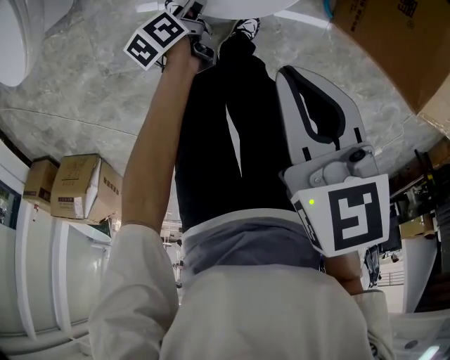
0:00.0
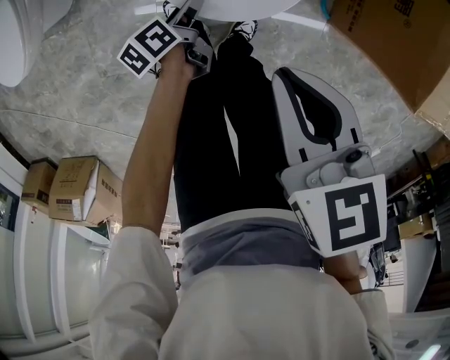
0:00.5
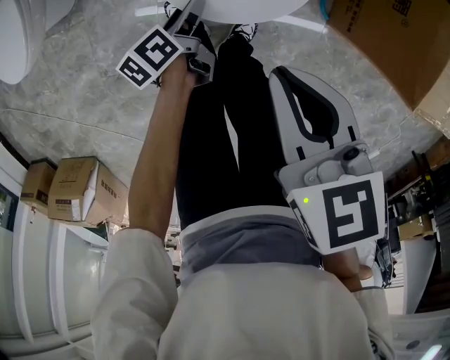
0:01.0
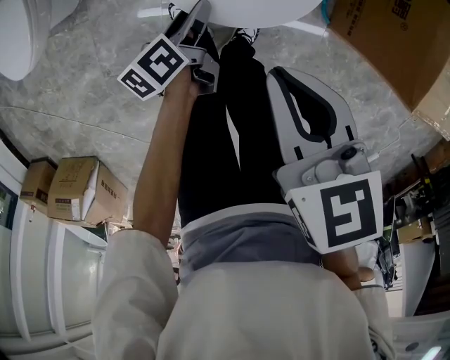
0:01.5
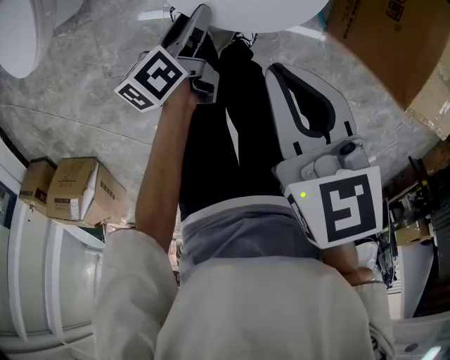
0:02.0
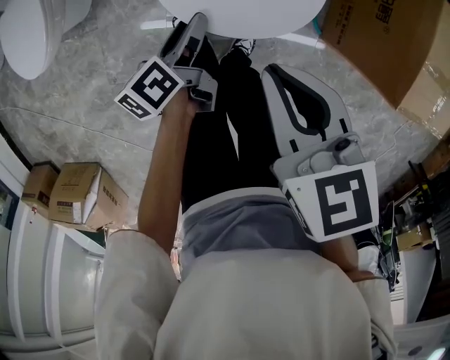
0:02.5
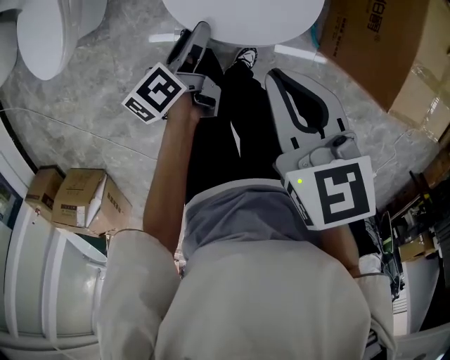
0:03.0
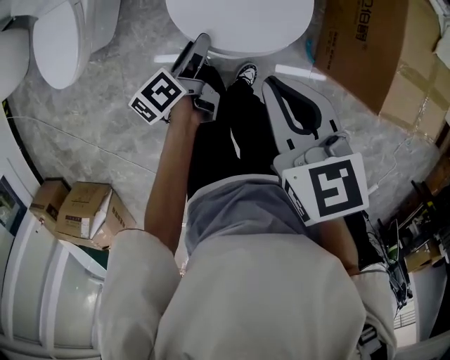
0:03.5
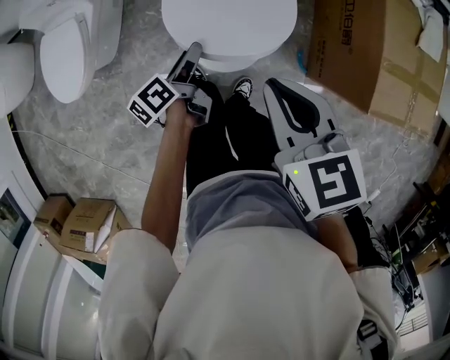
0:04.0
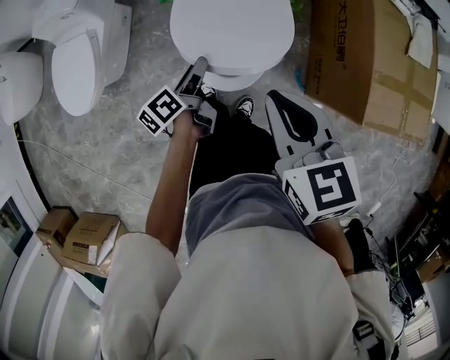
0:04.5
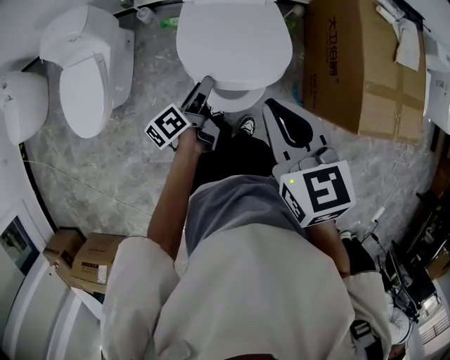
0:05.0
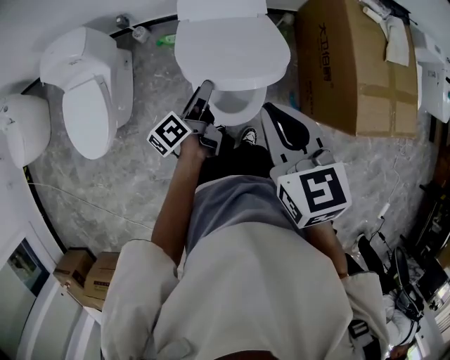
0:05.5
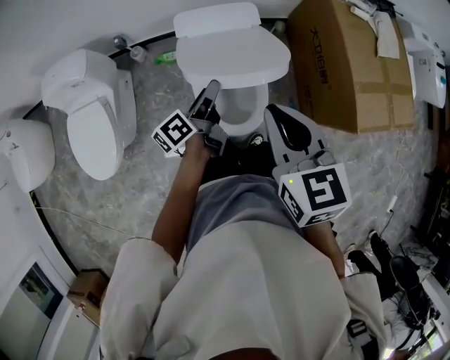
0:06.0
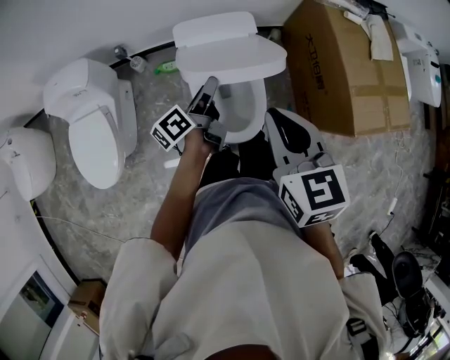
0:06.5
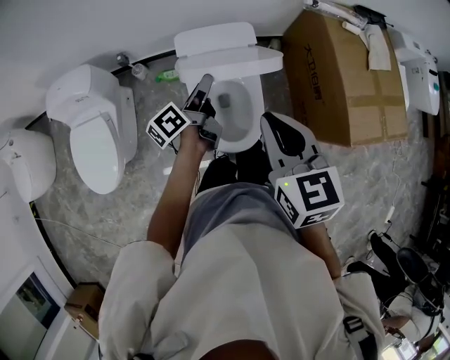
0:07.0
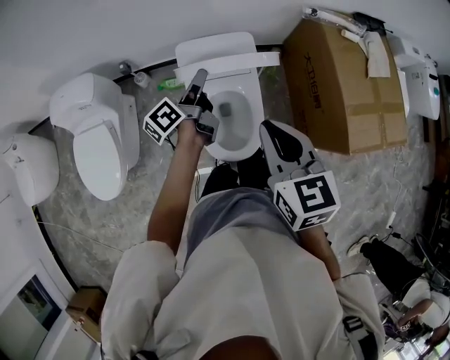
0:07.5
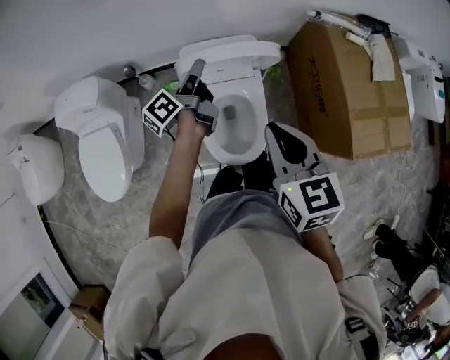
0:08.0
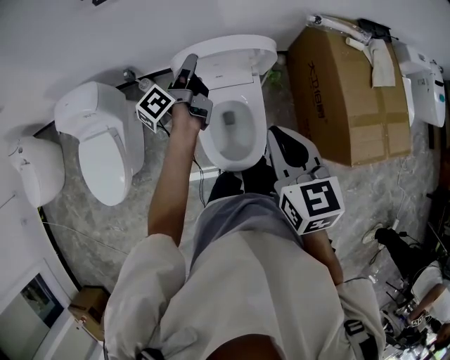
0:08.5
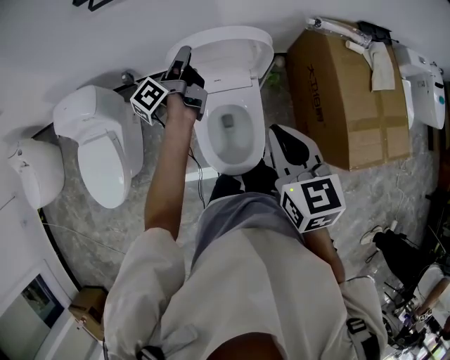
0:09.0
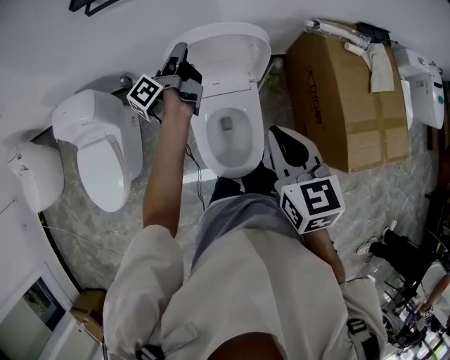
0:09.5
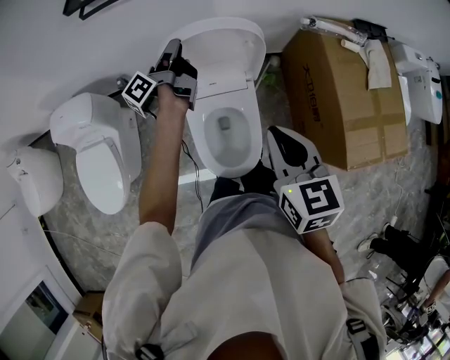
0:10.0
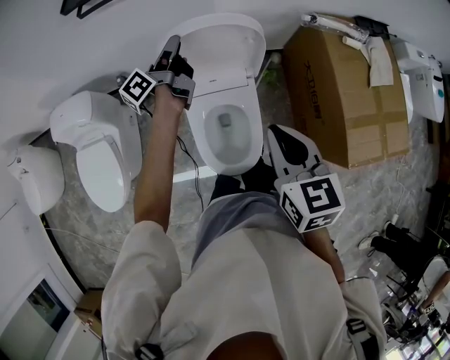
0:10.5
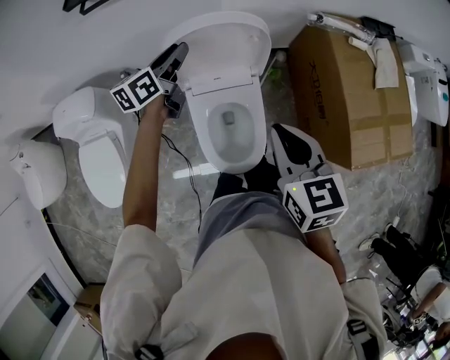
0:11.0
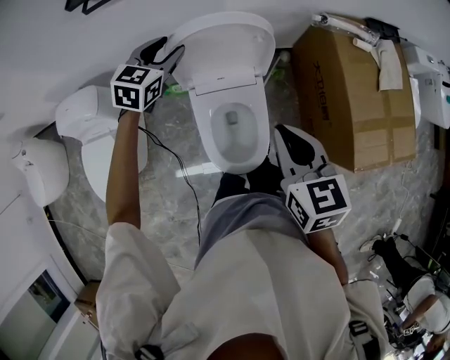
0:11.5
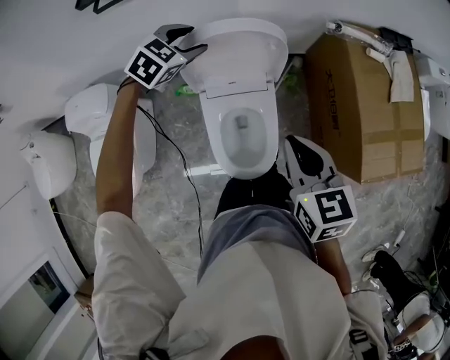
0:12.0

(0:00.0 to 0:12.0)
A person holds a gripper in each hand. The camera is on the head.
0:00.0 - 0:02.0: The left gripper is displaced upward by some 15 cm.
0:02.0 - 0:04.0: Both grippers travel together upward, about 15 cm.
0:04.0 - 0:06.0: The right gripper shifts roughly 15 cm upward, forward and to the left, and rotates some 20 degrees; the left gripper travels upward and forward by about 15 cm, and swivels about 20 degrees.
0:06.0 - 0:08.0: The left gripper travels forward and upward by approximately 15 cm.
0:08.0 - 0:10.0: The left gripper moves forward, some 15 cm; the right gripper goes about 10 cm forward.
0:10.0 - 0:12.0: The left gripper twists roughly 100 degrees clockwise, seen from behind, and opens.

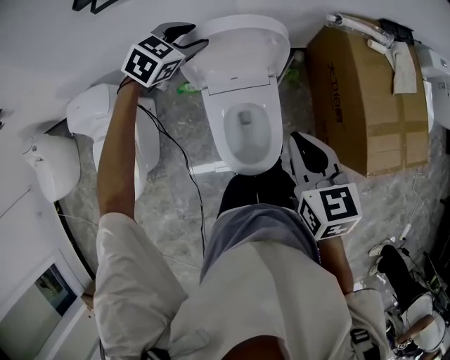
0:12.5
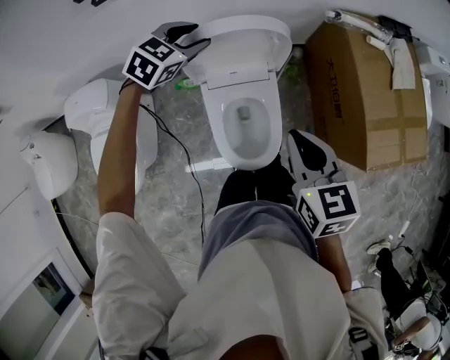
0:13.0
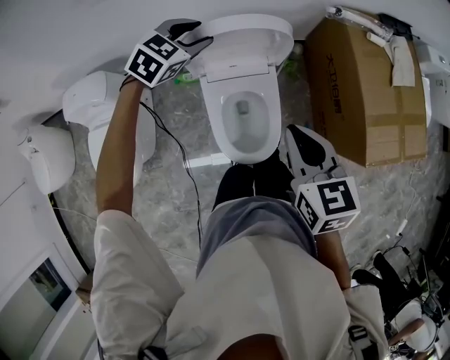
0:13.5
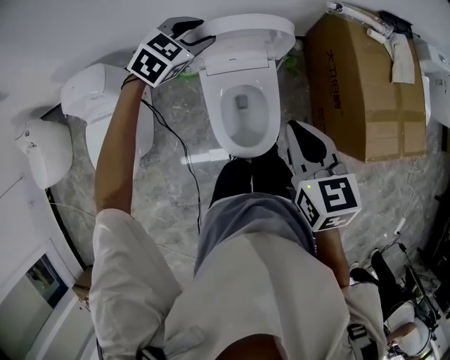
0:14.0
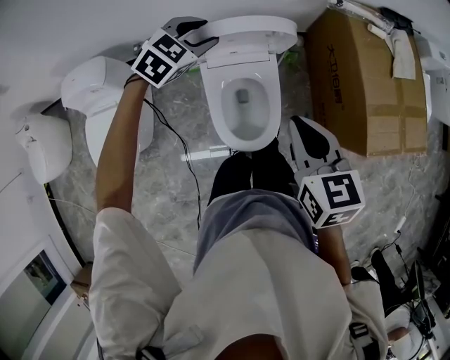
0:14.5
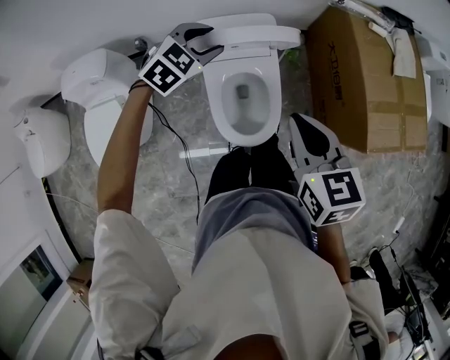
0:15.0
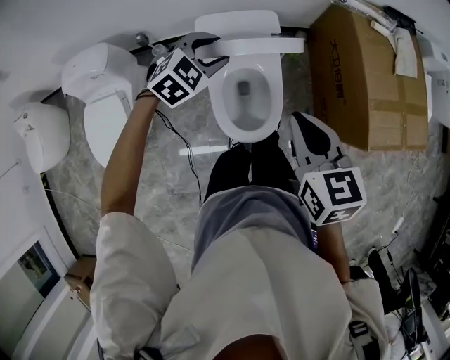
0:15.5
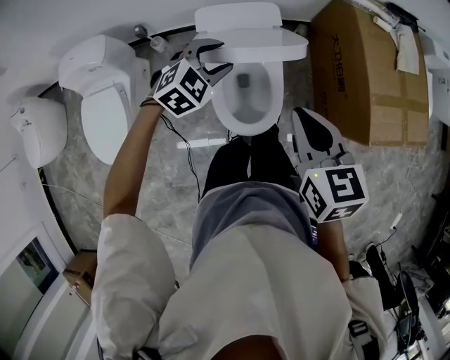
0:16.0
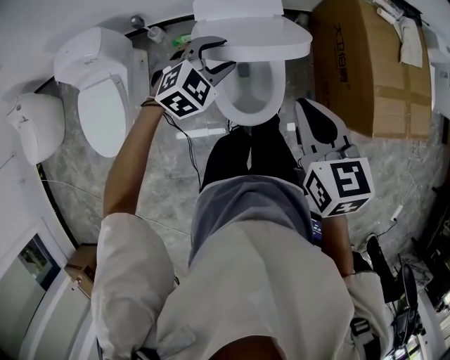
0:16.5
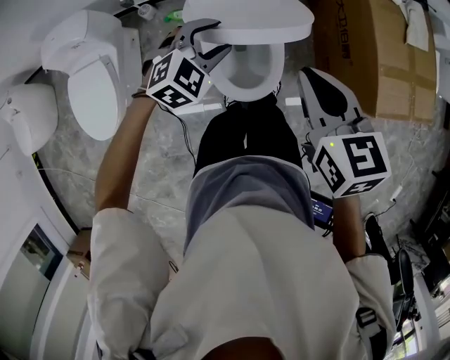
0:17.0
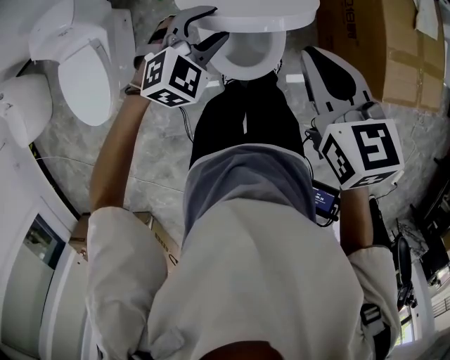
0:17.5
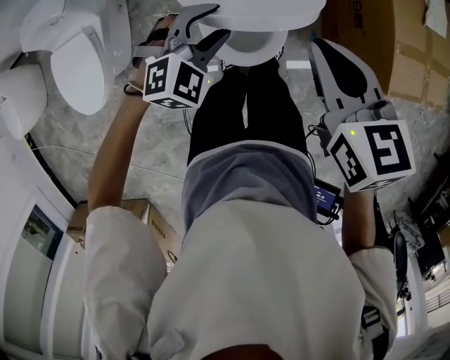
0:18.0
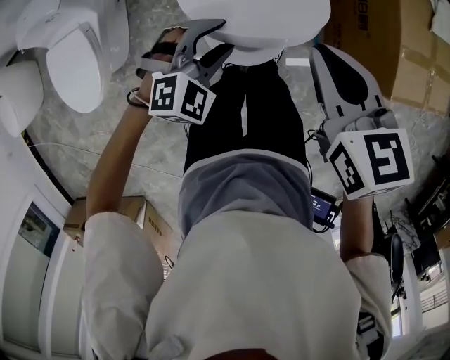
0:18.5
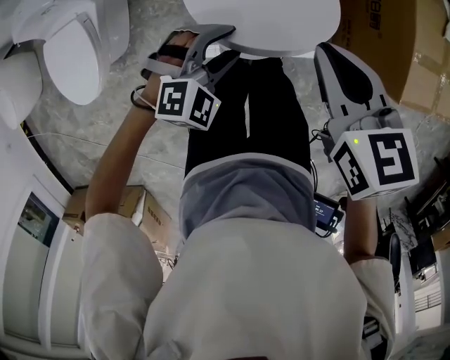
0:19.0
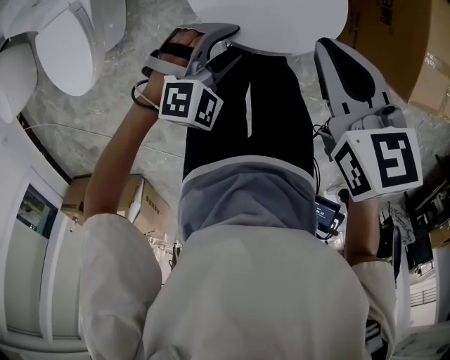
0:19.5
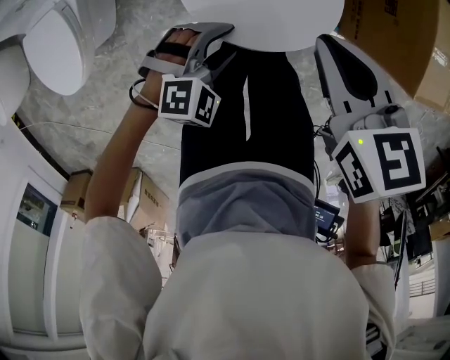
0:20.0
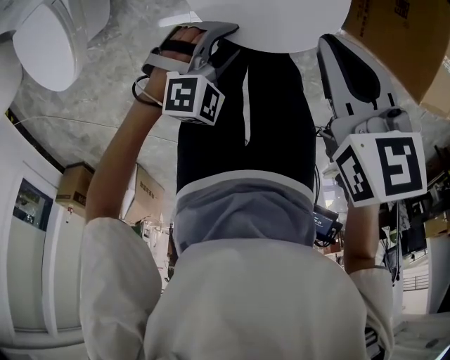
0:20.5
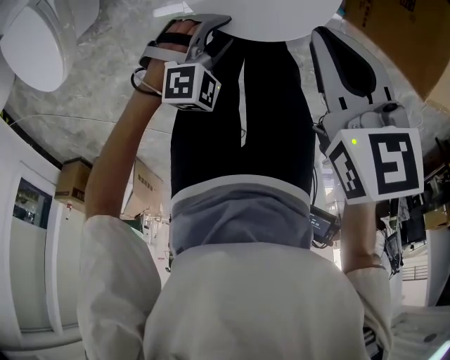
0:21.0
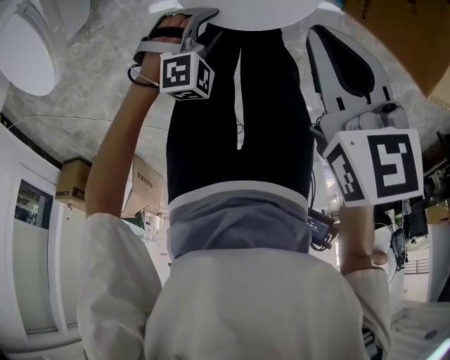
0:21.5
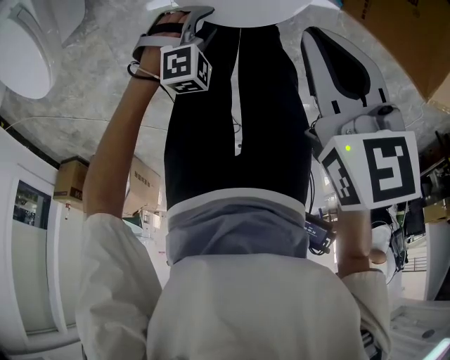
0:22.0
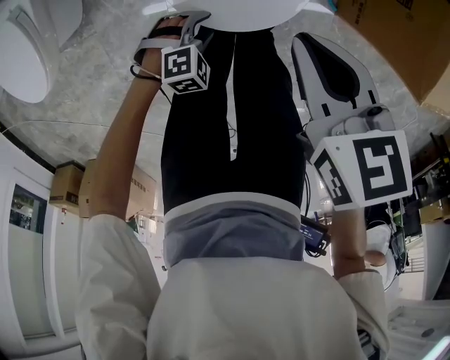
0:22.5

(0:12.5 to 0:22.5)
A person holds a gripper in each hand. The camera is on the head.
0:12.5 - 0:14.5: The left gripper travels backward by roughly 10 cm; the right gripper shifts approximately 5 cm backward.
0:14.5 - 0:16.5: The left gripper is displaced backward and downward by approximately 15 cm.
0:16.5 - 0:18.5: The left gripper heads backward and downward, covering some 15 cm. Meanwhile the right gripper moves downward, approximately 5 cm.
0:18.5 - 0:20.5: The right gripper heads downward, covering roughly 15 cm. The left gripper is displaced downward and backward by about 20 cm.
0:20.5 - 0:22.5: The left gripper shifts approximately 15 cm downward, while the right gripper shifts about 5 cm downward.

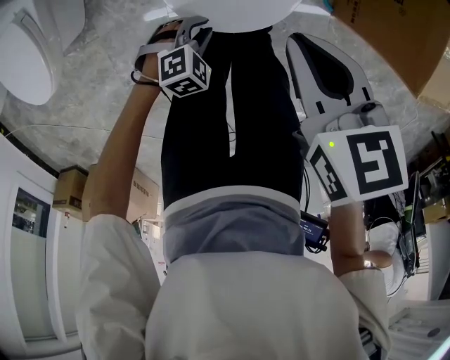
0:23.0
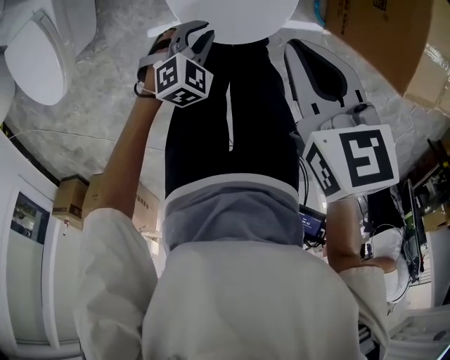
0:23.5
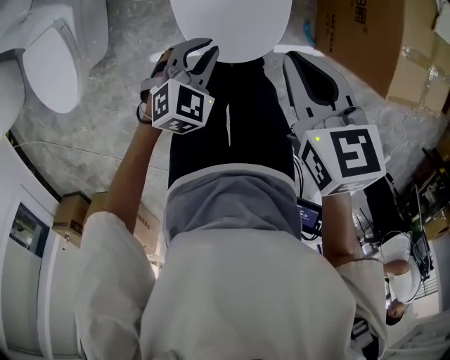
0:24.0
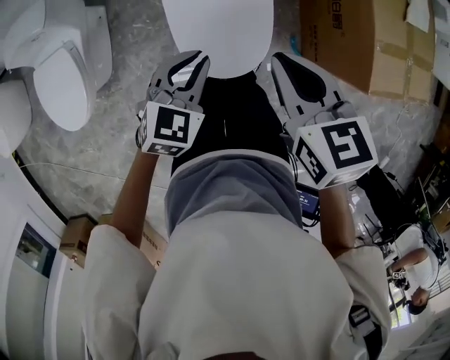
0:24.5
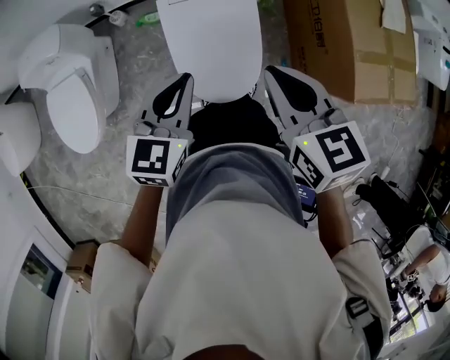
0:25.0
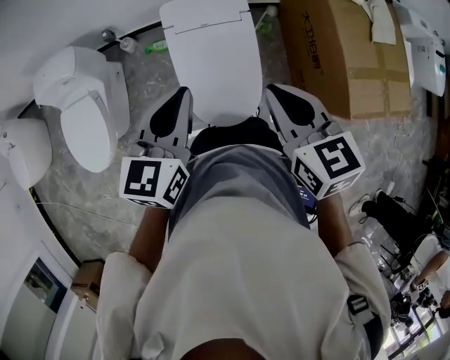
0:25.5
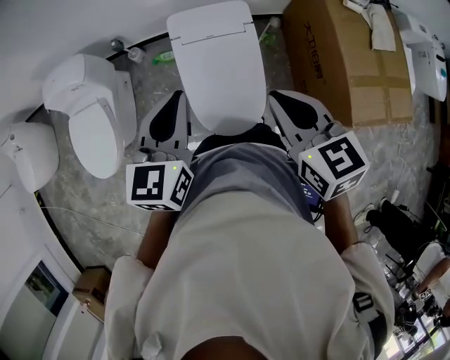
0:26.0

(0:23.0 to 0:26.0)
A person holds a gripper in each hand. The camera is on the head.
0:23.0 - 0:24.5: The left gripper heads upward, covering about 35 cm, and rotates roughly 40 degrees, while the right gripper shifts some 20 cm upward.
0:24.5 - 0:26.0: The left gripper goes approximately 20 cm upward, and changes its angle by approximately 30 degrees, while the right gripper heads upward, covering approximately 10 cm.

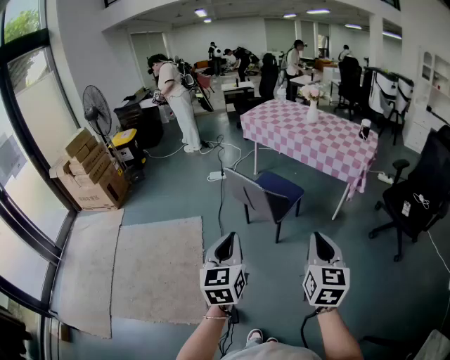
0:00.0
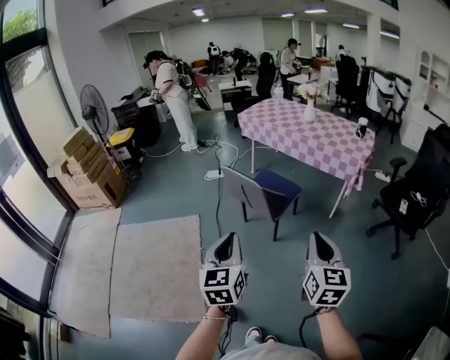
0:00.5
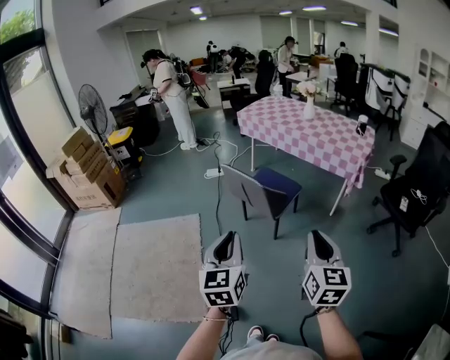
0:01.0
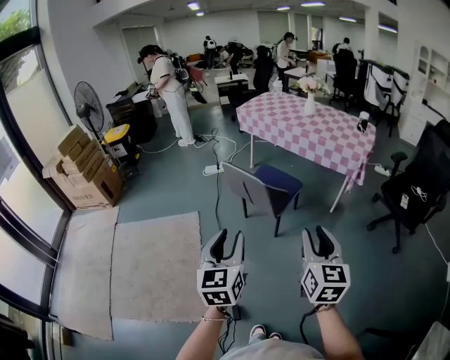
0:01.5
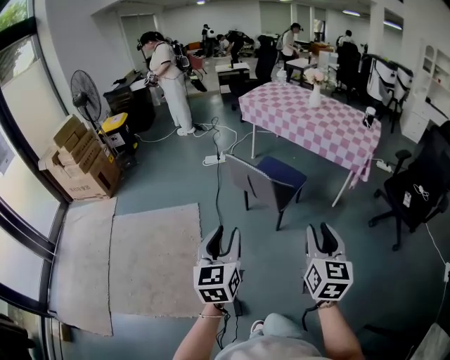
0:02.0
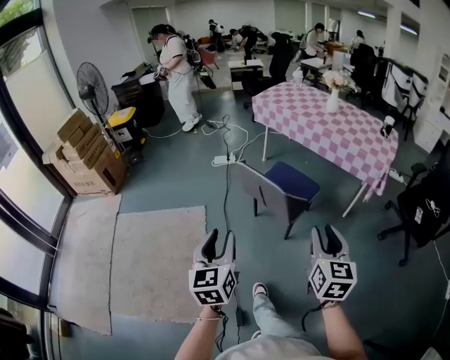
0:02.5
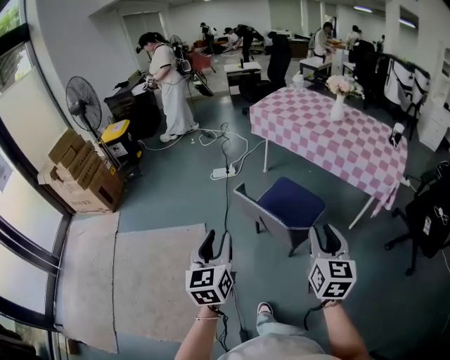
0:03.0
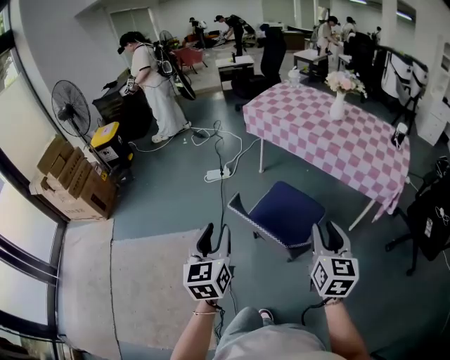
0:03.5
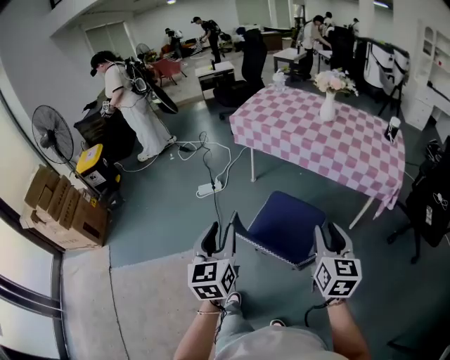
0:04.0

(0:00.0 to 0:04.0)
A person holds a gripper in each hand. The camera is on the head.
0:00.0 - 0:02.0: Both grippers travel together to the left, approximately 5 cm. The right gripper opens its fingers. The left gripper opens up.
0:02.0 - 0:04.0: The two grippers travel together, forward, roughly 40 cm.
